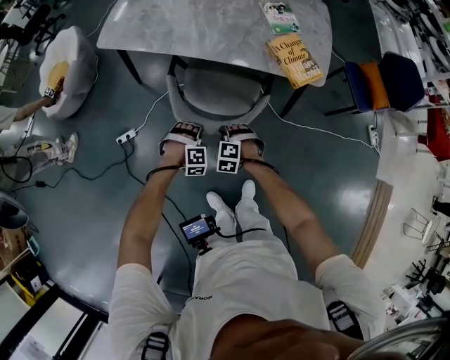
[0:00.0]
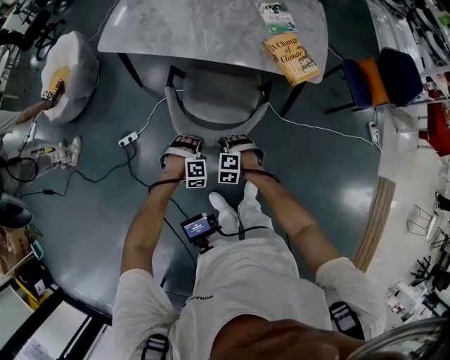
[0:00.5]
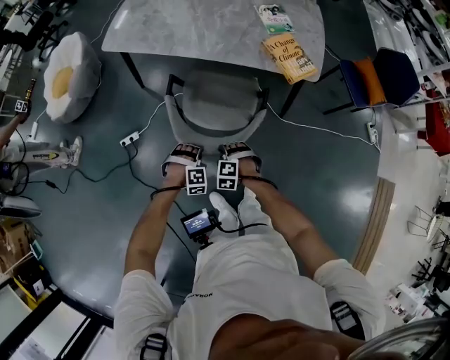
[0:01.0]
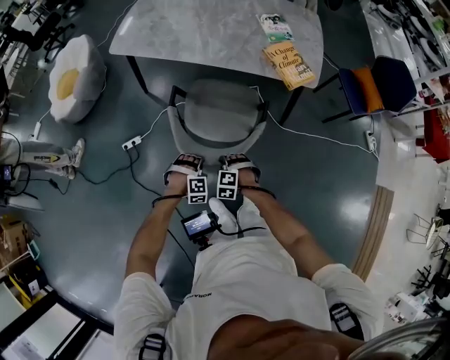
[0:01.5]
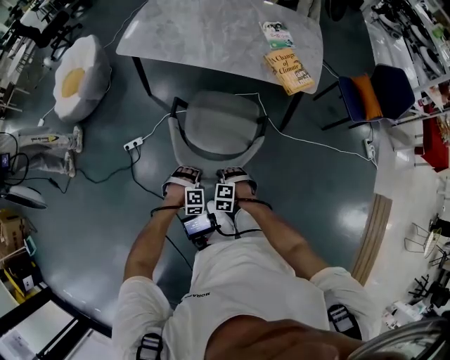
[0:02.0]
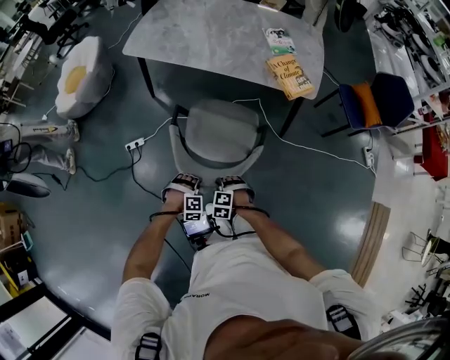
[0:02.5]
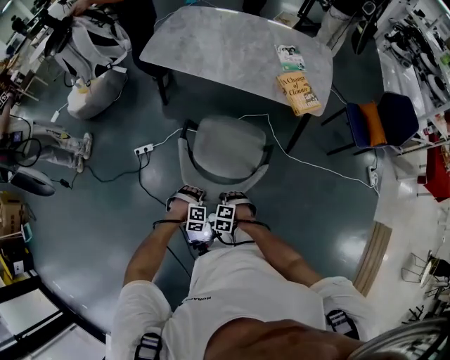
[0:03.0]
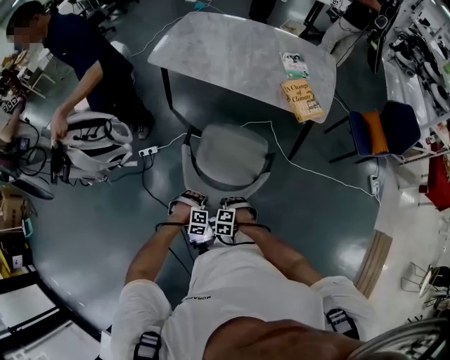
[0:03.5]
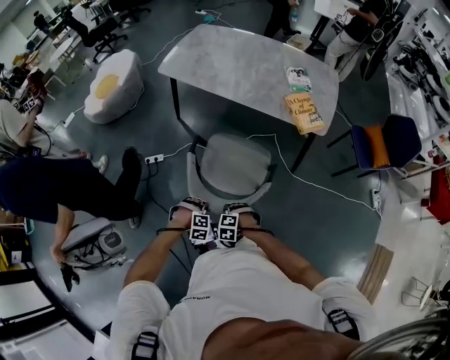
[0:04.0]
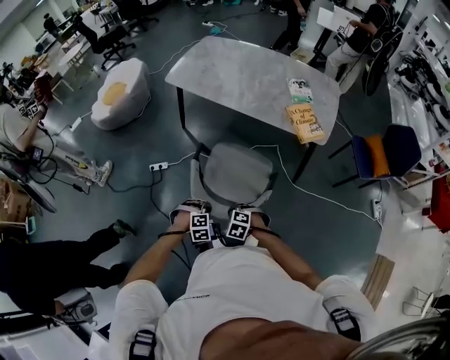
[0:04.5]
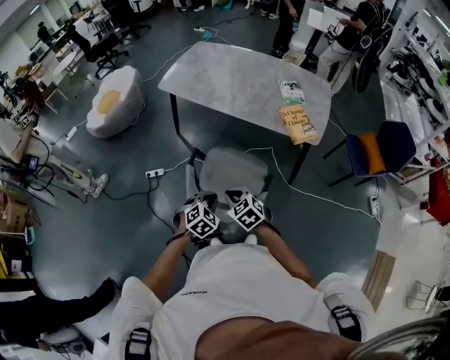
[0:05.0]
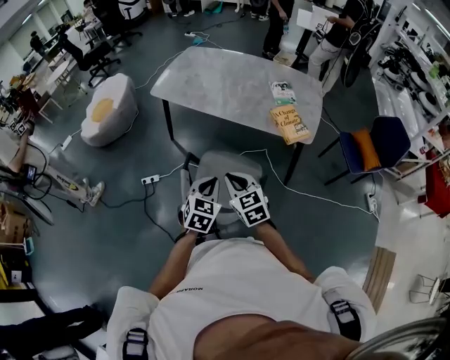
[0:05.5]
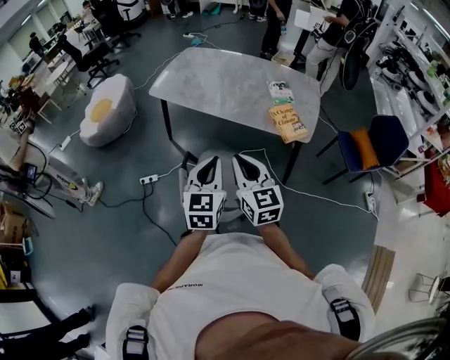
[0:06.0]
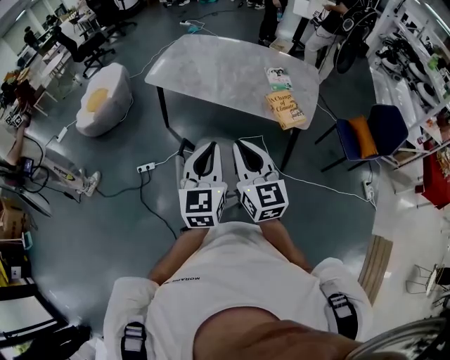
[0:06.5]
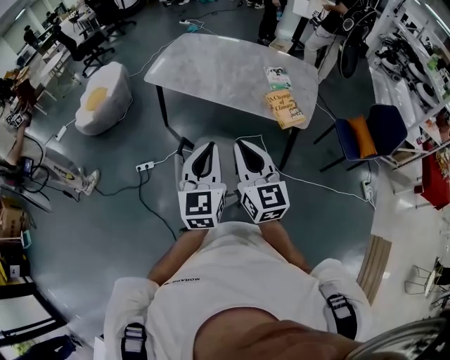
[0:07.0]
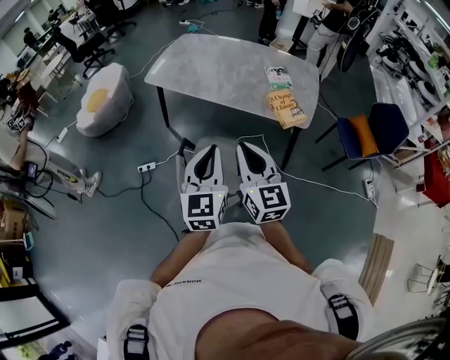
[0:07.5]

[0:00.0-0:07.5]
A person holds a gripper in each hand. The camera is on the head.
0:00.0 to 0:02.0: The two grippers go about 20 cm backward.
0:02.0 to 0:04.0: The left gripper shifts by approximately 10 cm. The right gripper changes place by roughly 10 cm.
0:04.0 to 0:05.5: Both grippers move upward, roughly 30 cm. The left gripper angles its fingers upward, by roughly 40 degrees, while the right gripper angles its fingers upward, by approximately 50 degrees.
0:05.5 to 0:07.5: Both grippers travel together upward, about 15 cm. The right gripper changes its angle by about 30 degrees. Meanwhile the left gripper rotates about 30 degrees.

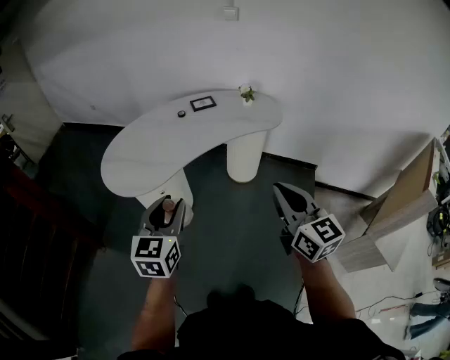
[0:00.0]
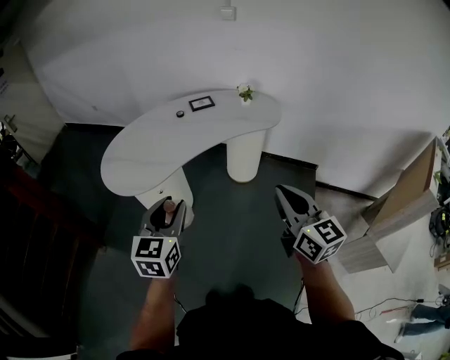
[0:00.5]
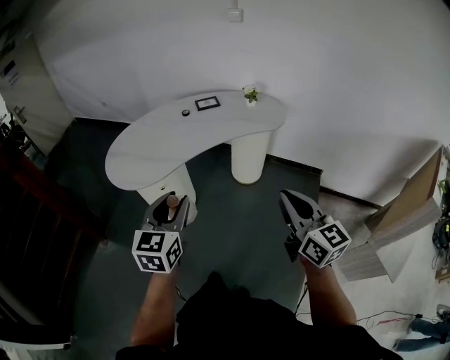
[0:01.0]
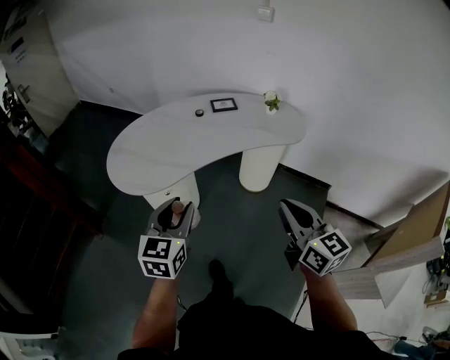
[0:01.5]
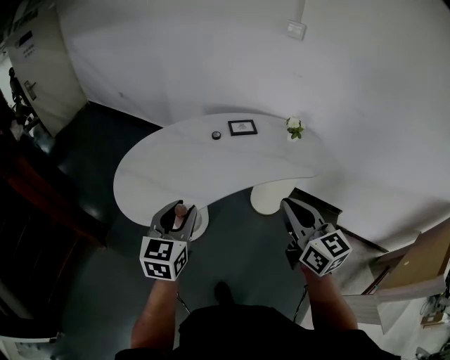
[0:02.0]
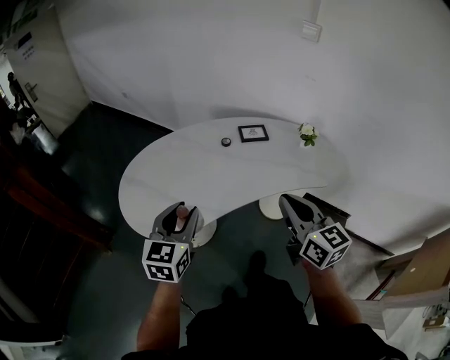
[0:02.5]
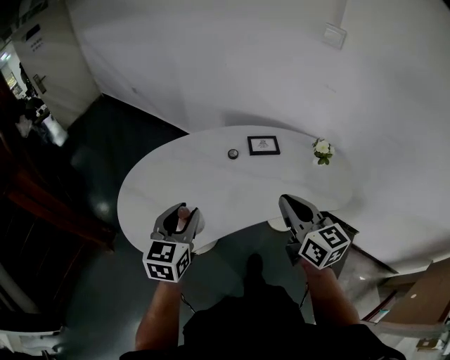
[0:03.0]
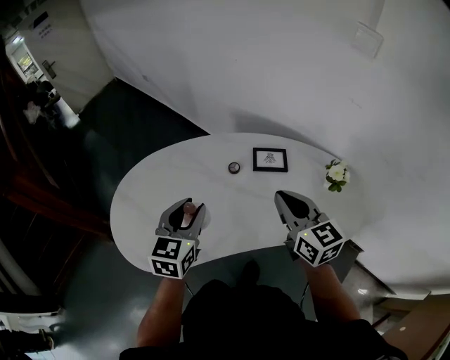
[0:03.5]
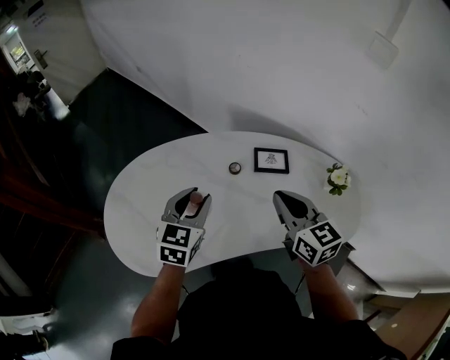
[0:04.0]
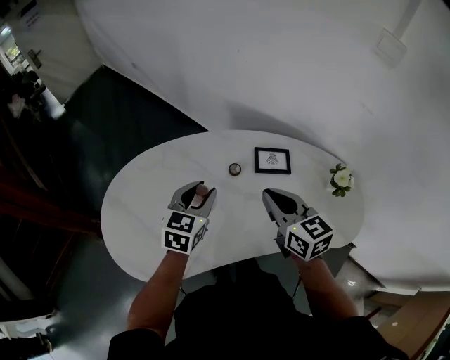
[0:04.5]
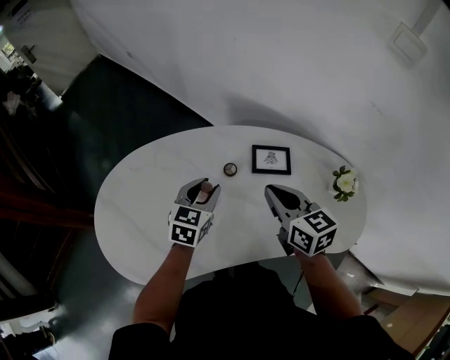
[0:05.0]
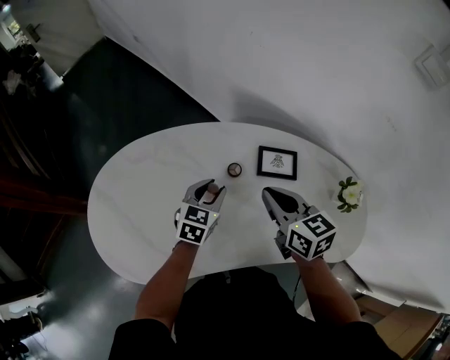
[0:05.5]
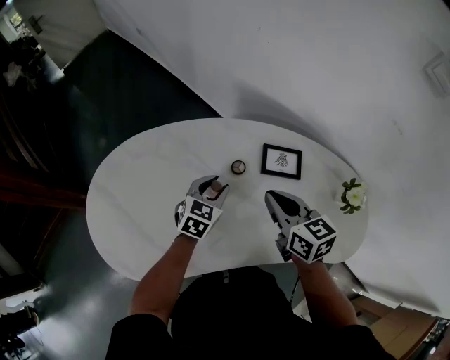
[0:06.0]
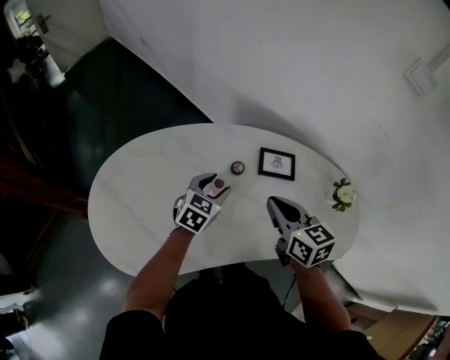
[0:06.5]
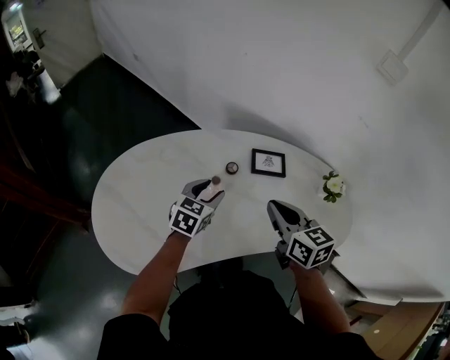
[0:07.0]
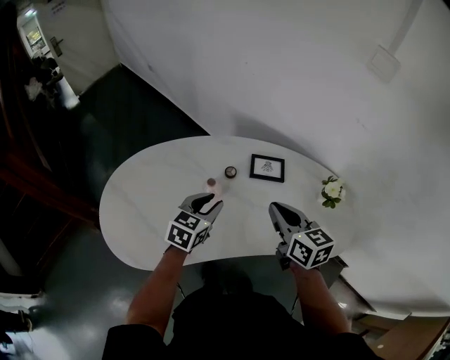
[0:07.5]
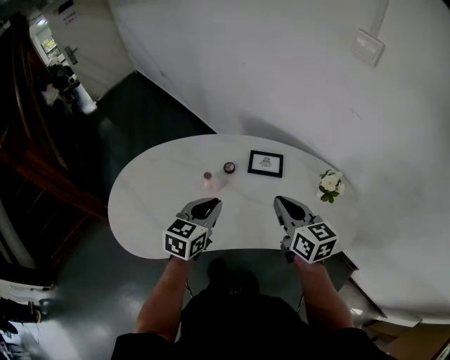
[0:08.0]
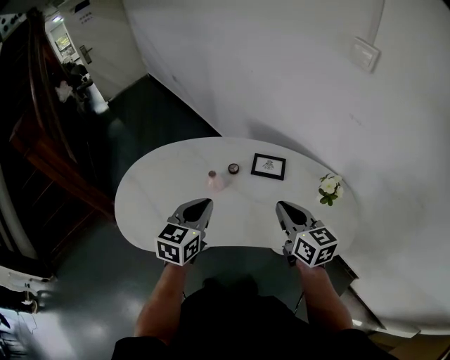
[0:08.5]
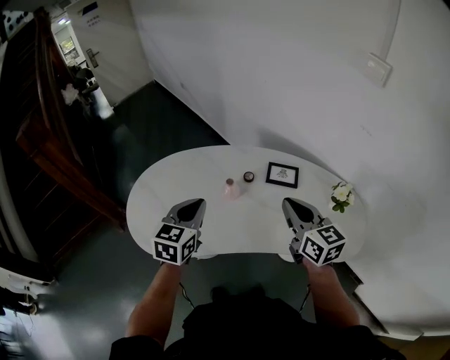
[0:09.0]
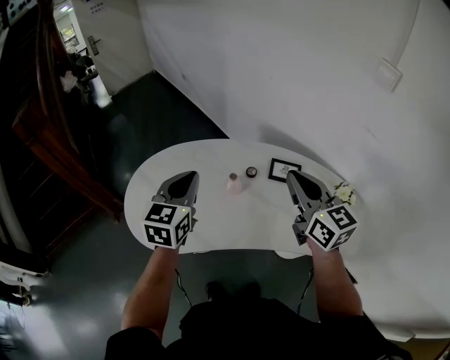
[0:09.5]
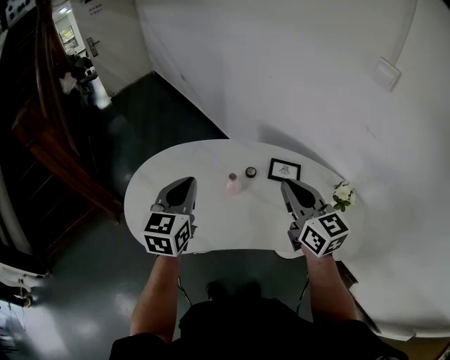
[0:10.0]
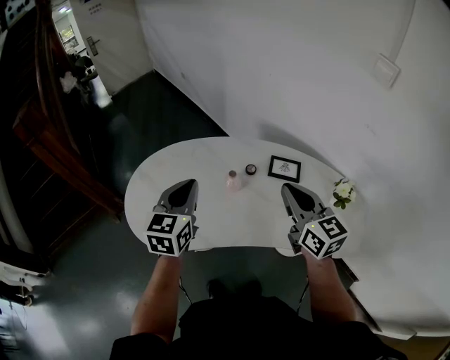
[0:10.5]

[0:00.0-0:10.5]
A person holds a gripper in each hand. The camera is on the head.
0:00.0 to 0:02.0: Both grippers travel together forward, roughly 20 cm.
0:02.0 to 0:04.0: The two grippers go approximately 35 cm forward.
0:04.0 to 0:06.5: The right gripper moves downward, some 10 cm, while the left gripper shifts approximately 15 cm downward and forward.
0:06.5 to 0:08.5: The left gripper moves upward and backward, about 25 cm, changes its angle by about 20 degrees, and closes its fingers. Meanwhile the right gripper is displaced to the right, backward and upward by roughly 15 cm.
0:08.5 to 0:10.5: The two grippers go roughly 10 cm to the left and upward.

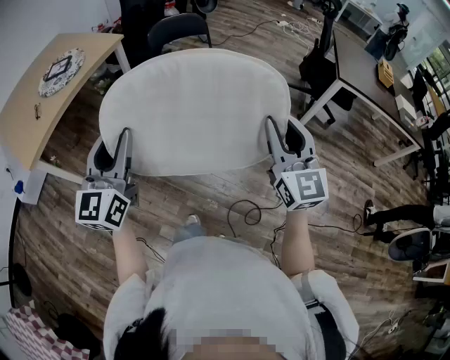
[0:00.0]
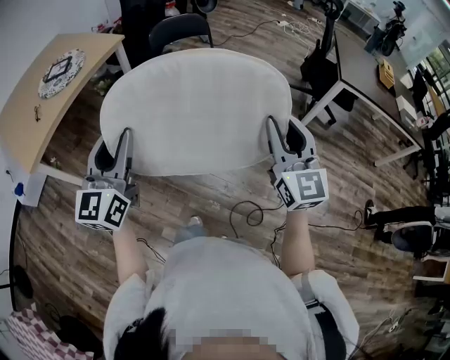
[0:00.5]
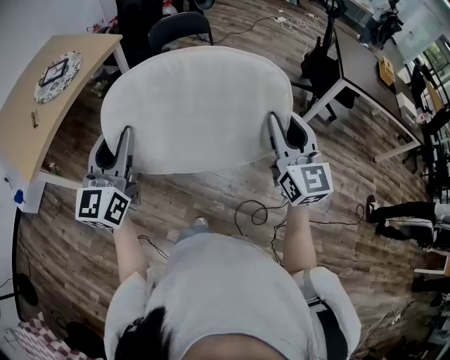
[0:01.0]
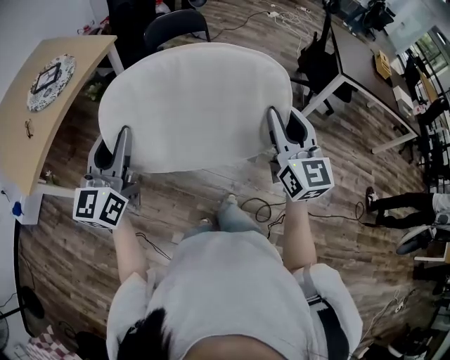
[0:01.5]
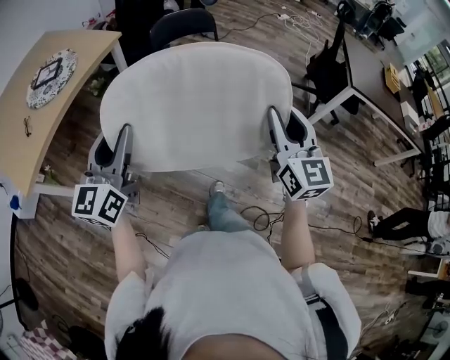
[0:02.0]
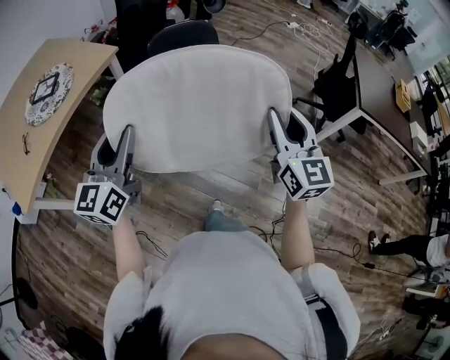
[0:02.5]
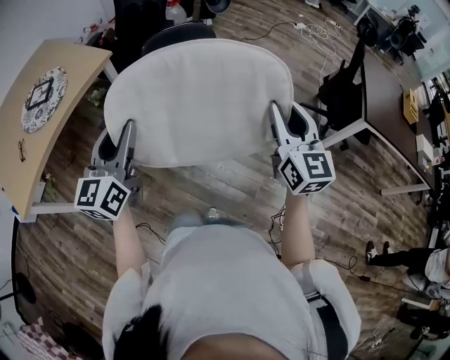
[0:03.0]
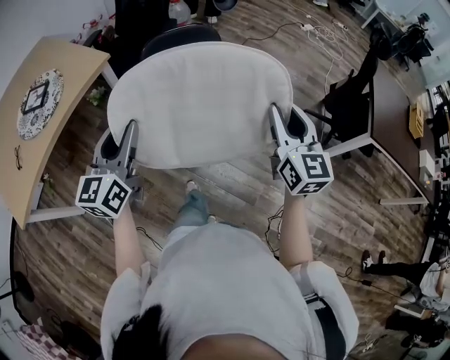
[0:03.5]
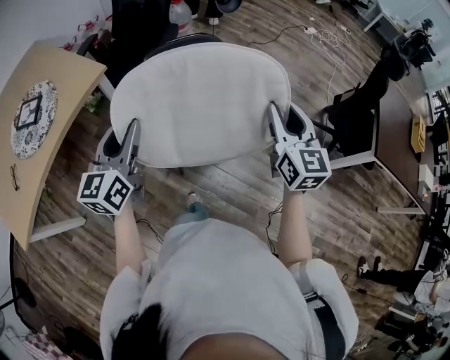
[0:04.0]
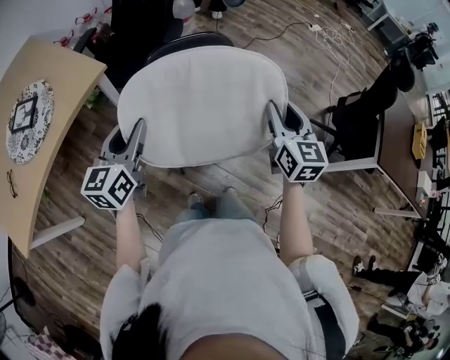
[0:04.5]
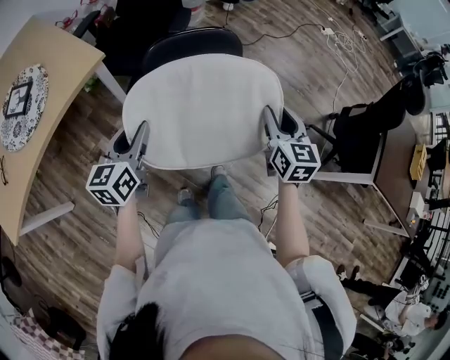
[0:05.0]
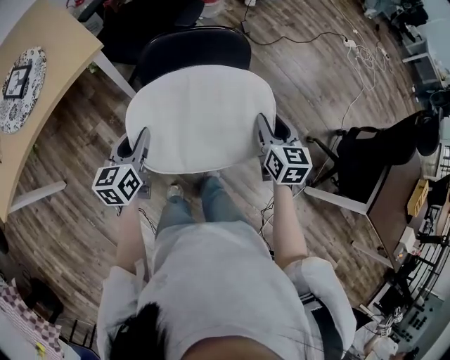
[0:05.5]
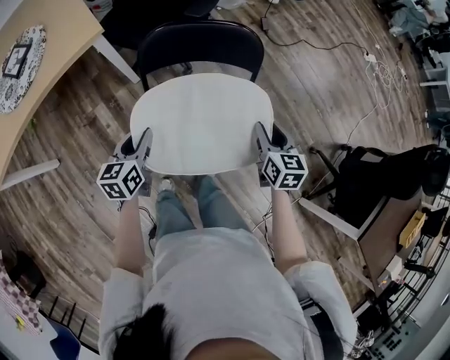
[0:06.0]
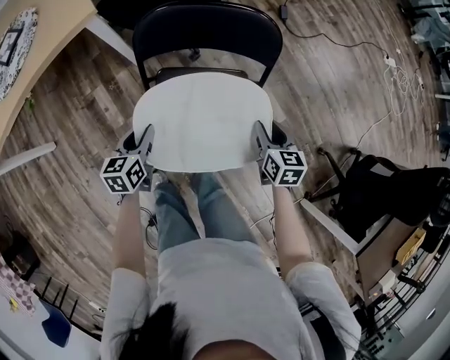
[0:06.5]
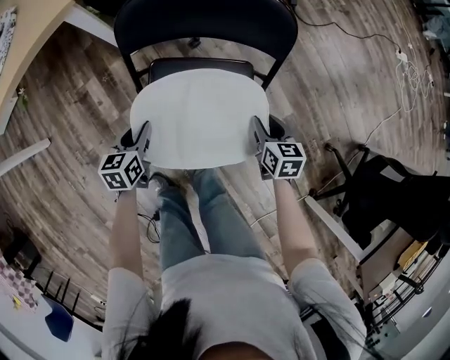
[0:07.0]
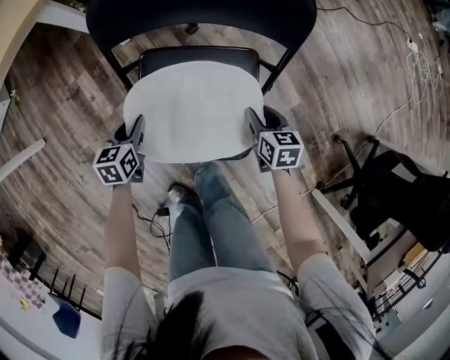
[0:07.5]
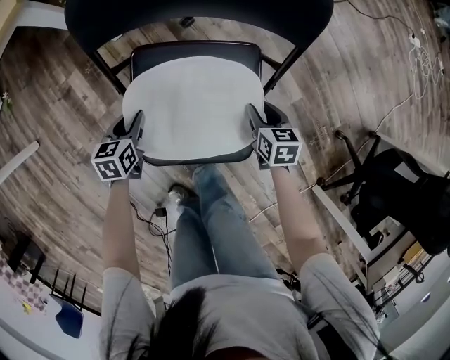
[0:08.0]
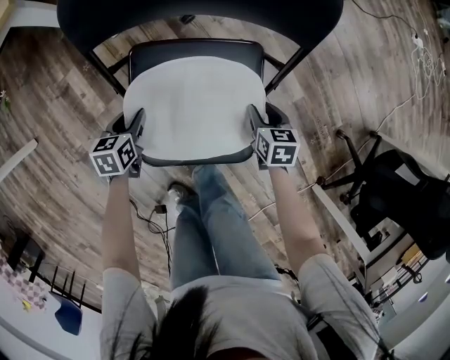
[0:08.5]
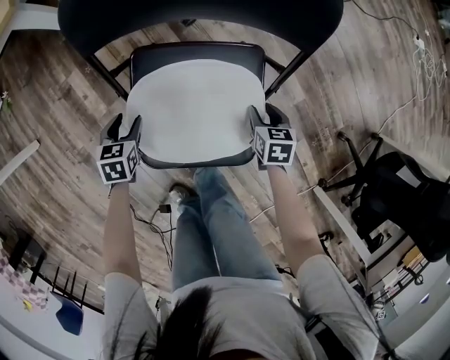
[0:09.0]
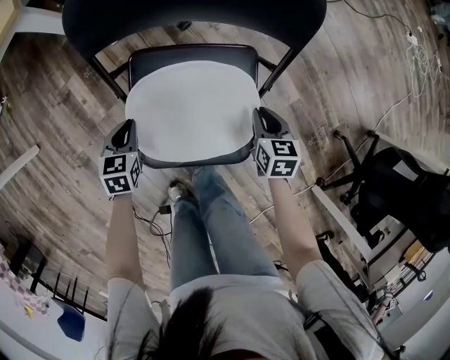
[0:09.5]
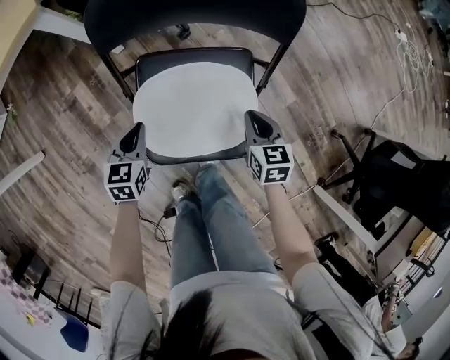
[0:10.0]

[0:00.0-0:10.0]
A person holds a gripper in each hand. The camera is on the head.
0:00.0 to 0:02.0: Both grippers travel together forward and to the left, roughly 20 cm.
0:02.0 to 0:04.0: The two grippers travel together, forward, about 40 cm.
0:04.0 to 0:06.0: The two grippers go roughly 30 cm downward and forward. The right gripper turns by approximately 30 degrees, while the left gripper turns by roughly 30 degrees.
0:06.0 to 0:08.0: The grippers both shift downward by some 35 cm. The right gripper rotates some 20 degrees. Meanwhile the left gripper rotates roughly 20 degrees.
0:08.0 to 0:10.0: The grippers both shift upward by some 10 cm. The left gripper closes. Meanwhile the right gripper closes.
